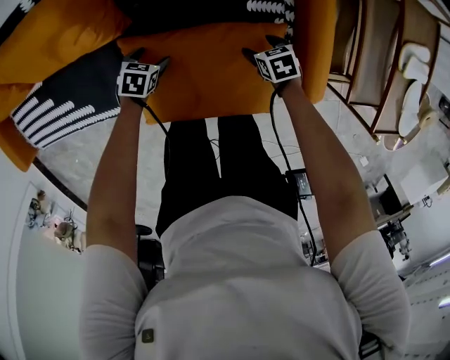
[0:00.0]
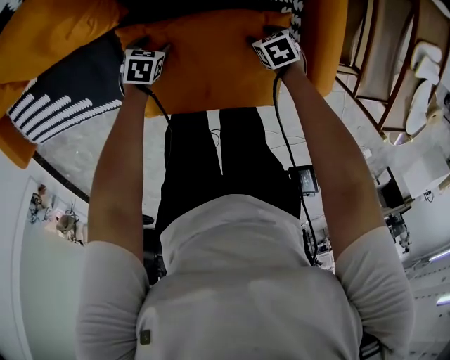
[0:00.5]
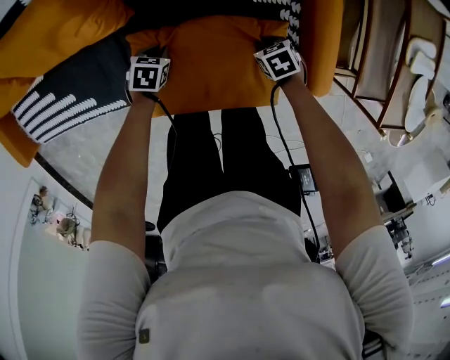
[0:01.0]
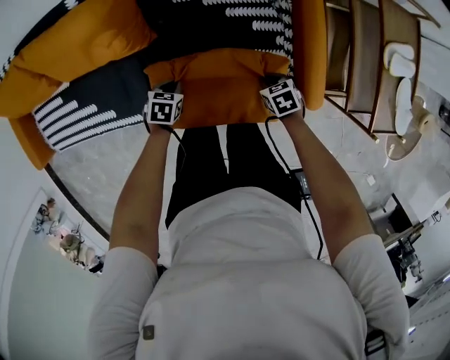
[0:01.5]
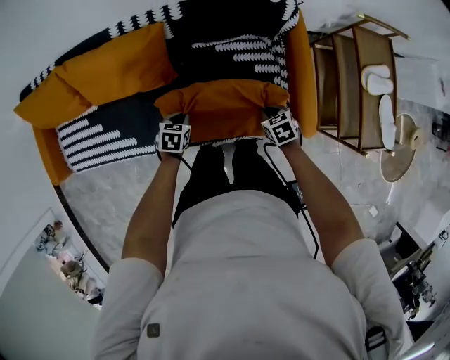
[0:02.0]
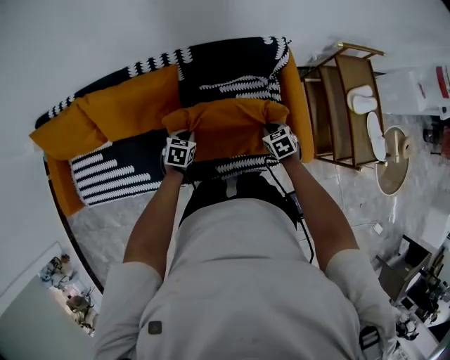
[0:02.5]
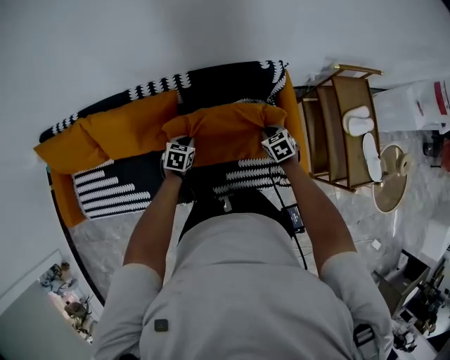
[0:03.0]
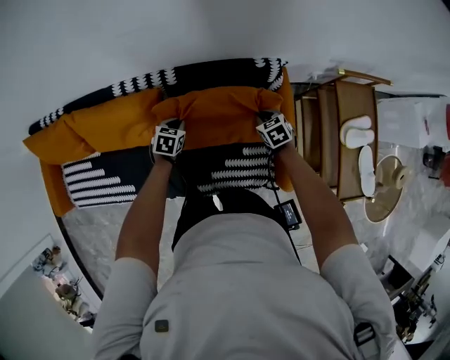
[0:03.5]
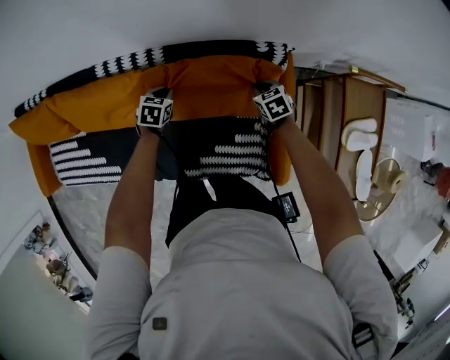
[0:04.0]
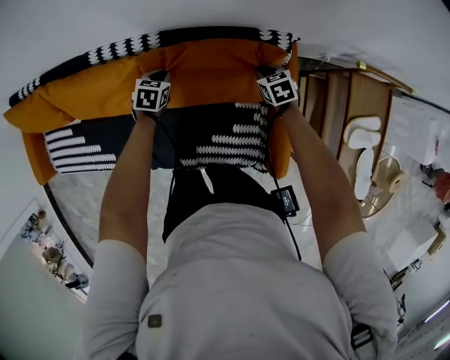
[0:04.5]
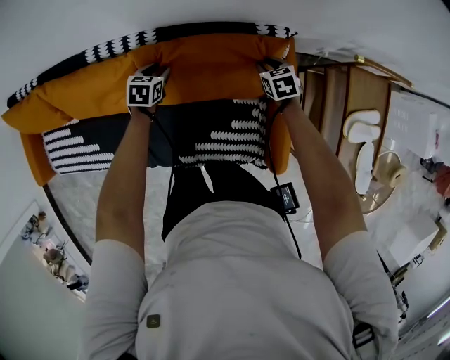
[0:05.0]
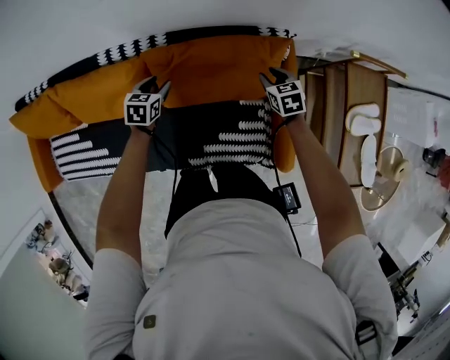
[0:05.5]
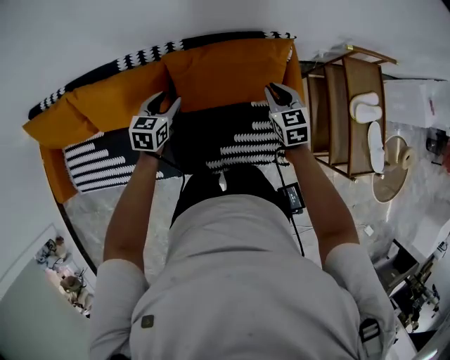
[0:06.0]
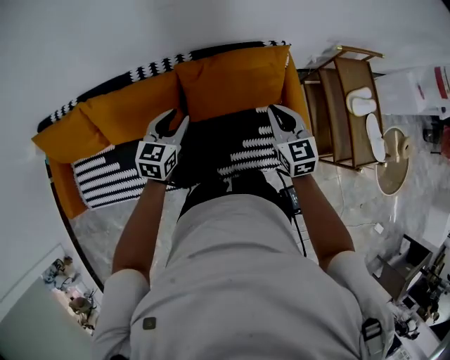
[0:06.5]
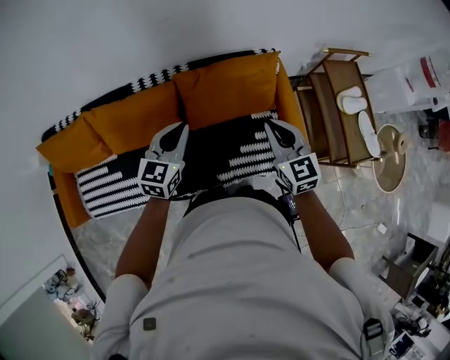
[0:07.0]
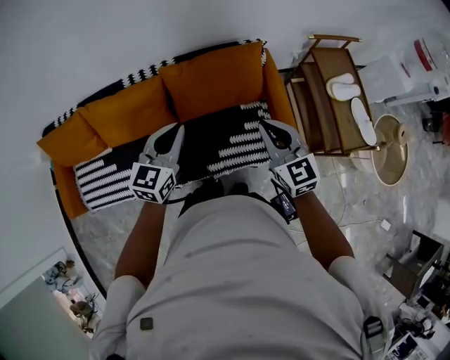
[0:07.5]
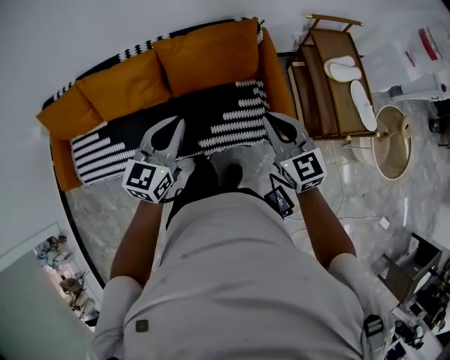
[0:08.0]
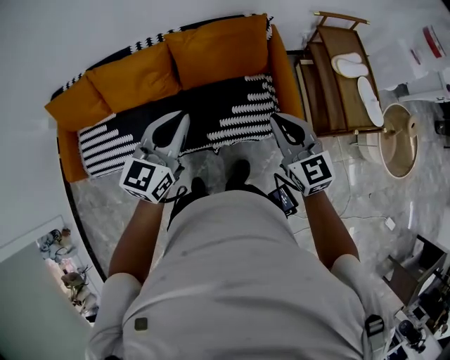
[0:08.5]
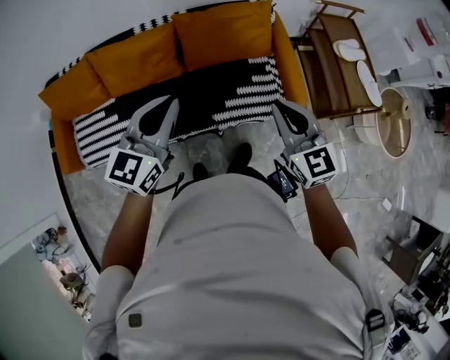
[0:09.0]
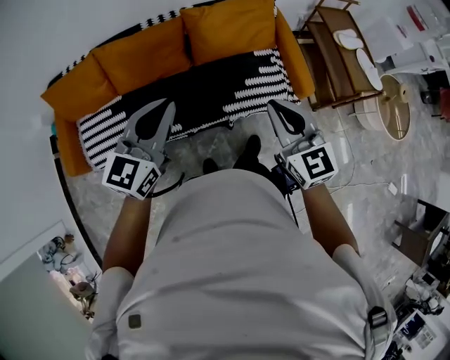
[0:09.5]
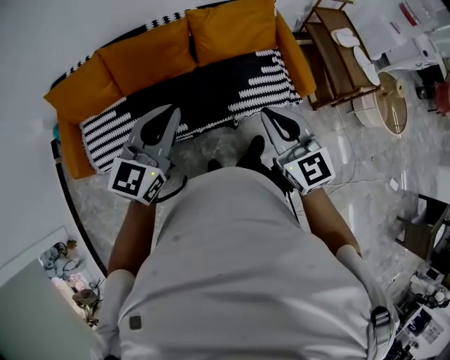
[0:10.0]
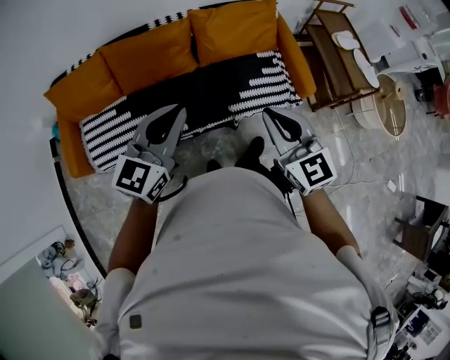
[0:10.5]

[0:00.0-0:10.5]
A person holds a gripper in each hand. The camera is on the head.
0:00.0 to 0:02.0: The grippers both shift upward by roughly 20 cm. The right gripper closes its fingers. Meanwhile the left gripper closes its fingers.
0:02.0 to 0:04.0: Both grippers travel together forward, about 30 cm.
0:04.0 to 0:06.5: The right gripper moves upward, backward and to the left, about 35 cm, tilts its fingers approximately 30 degrees upward, and opens, then closes again. The left gripper is displaced upward and backward by some 30 cm, rotates approximately 30 degrees, and opens its fingers.
0:06.5 to 0:08.5: The left gripper is displaced backward, upward and to the right by roughly 35 cm, and closes its fingers, while the right gripper travels backward and to the right by approximately 30 cm.
0:08.5 to 0:10.5: The two grippers go some 30 cm to the left and backward.

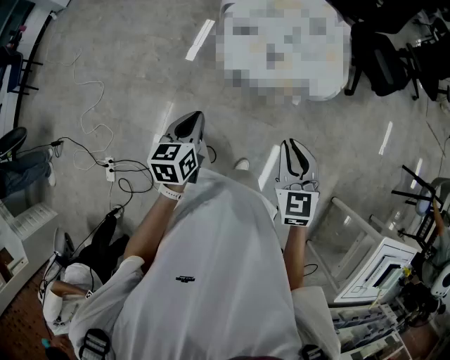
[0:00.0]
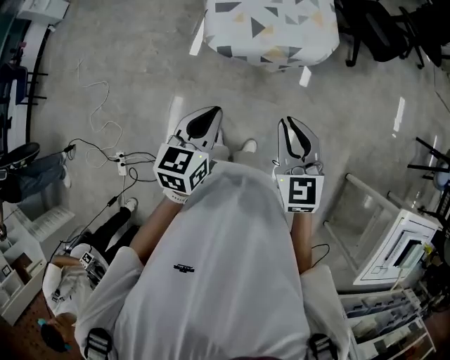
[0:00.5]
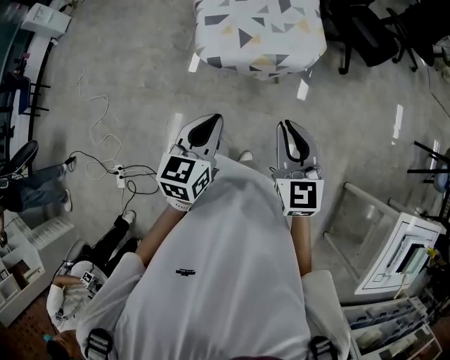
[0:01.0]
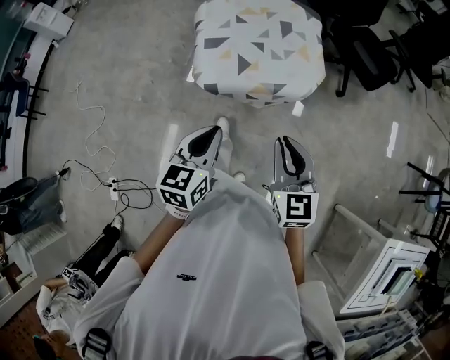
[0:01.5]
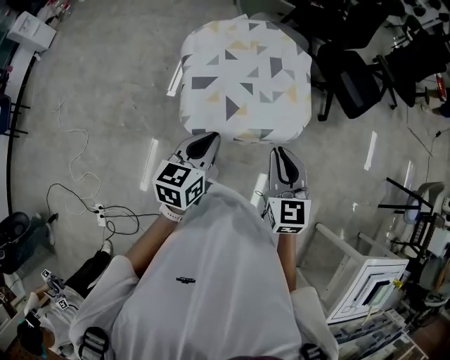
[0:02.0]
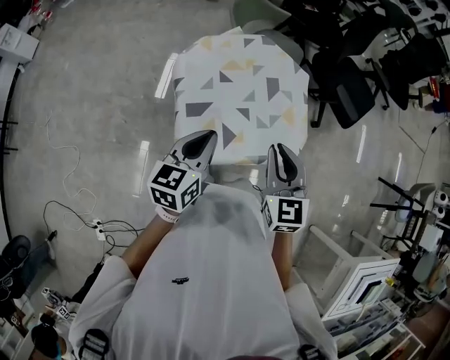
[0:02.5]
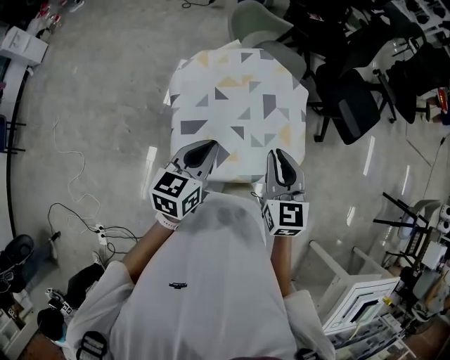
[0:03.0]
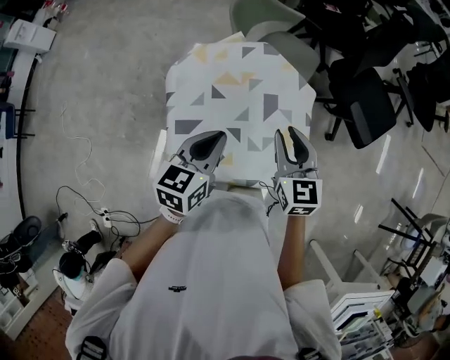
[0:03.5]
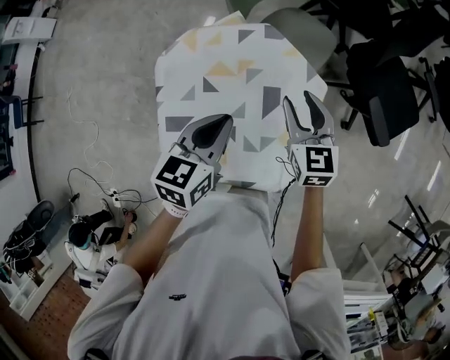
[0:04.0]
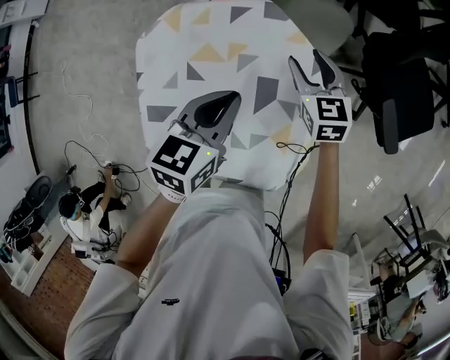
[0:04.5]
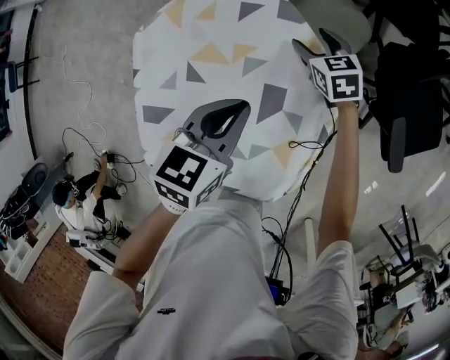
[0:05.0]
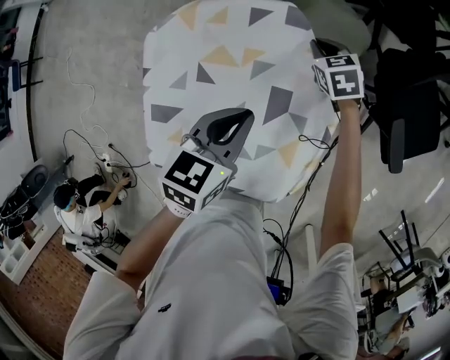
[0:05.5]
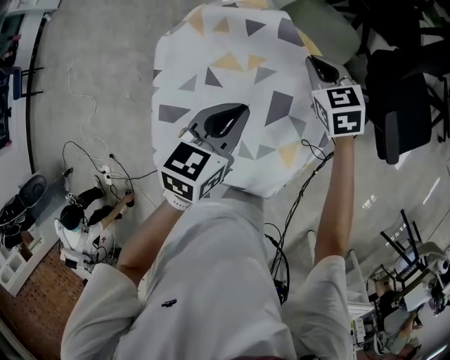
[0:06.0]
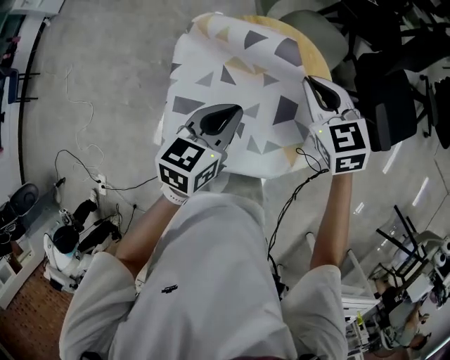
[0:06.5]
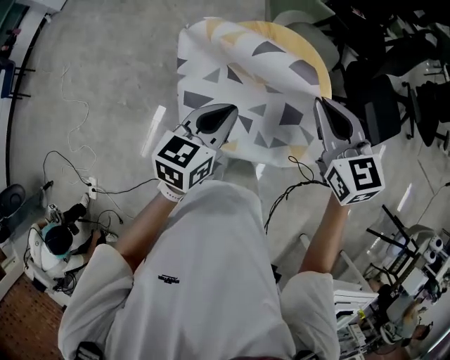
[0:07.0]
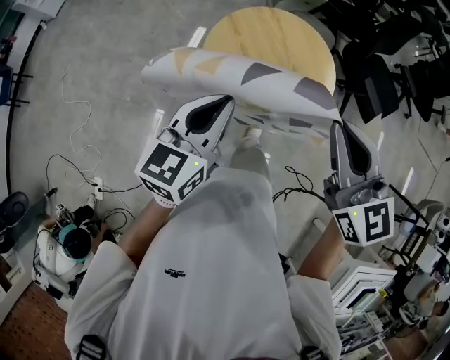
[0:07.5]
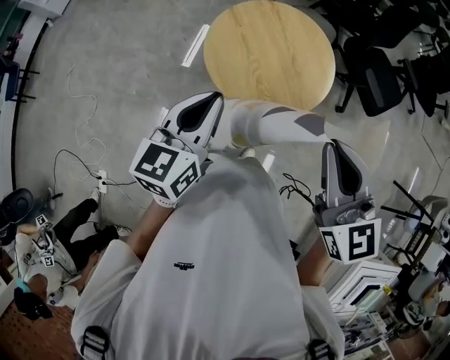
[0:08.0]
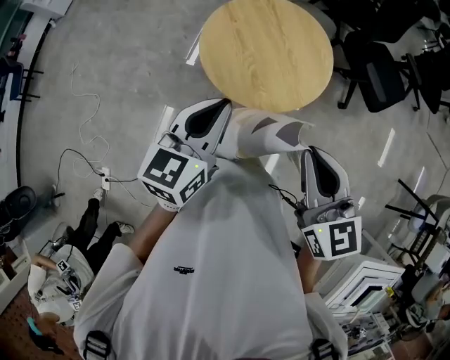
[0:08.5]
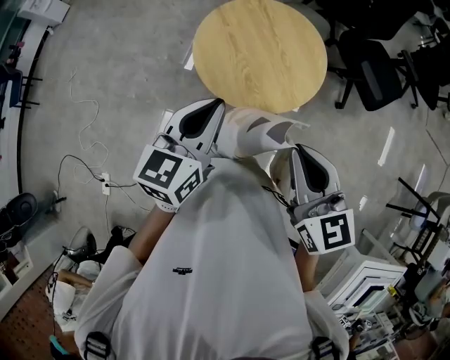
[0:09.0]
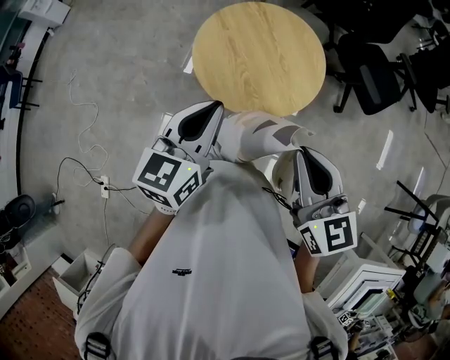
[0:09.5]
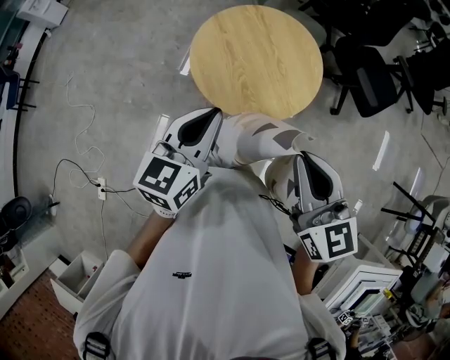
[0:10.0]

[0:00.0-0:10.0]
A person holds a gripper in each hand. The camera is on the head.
0:00.0 to 0:02.0: The left gripper shifts roughly 25 cm forward, to the right and upward. Meanwhile the right gripper goes roughly 20 cm forward and to the right.
0:02.0 to 0:04.0: Both grippers travel together forward, about 40 cm. The right gripper opens its fingers.
0:04.0 to 0:06.0: The left gripper goes some 5 cm downward. Meanwhile the right gripper heads forward and downward, covering roughly 15 cm, swivels some 20 degrees, and closes its fingers.
0:06.0 to 0:08.0: The left gripper heads backward, to the left and upward, covering about 40 cm, and rotates some 20 degrees. Meanwhile the right gripper heads backward and upward, covering about 60 cm, and rotates about 30 degrees.
0:08.0 to 0:10.0: The left gripper travels to the right by approximately 5 cm, while the right gripper shifts by approximately 5 cm.

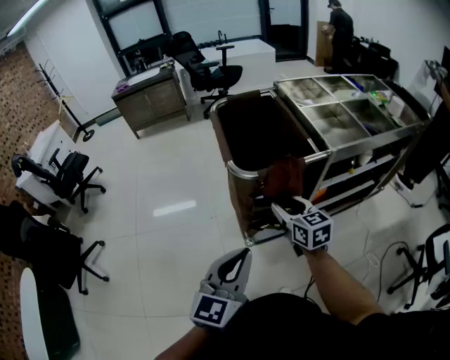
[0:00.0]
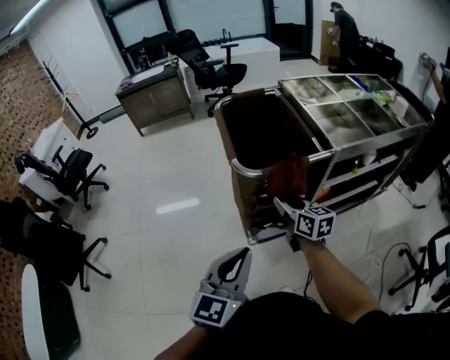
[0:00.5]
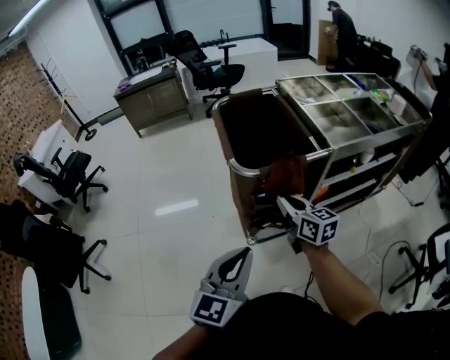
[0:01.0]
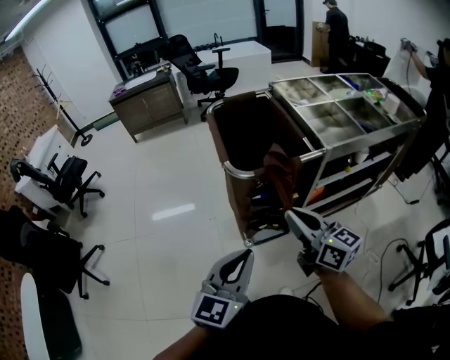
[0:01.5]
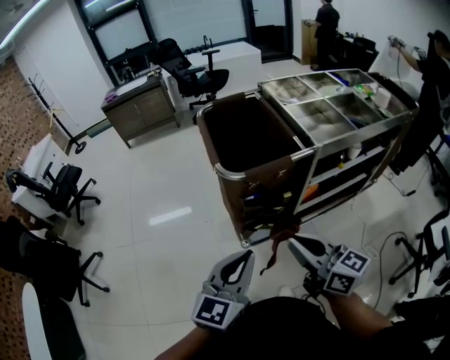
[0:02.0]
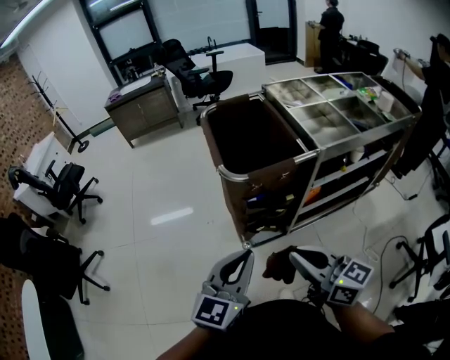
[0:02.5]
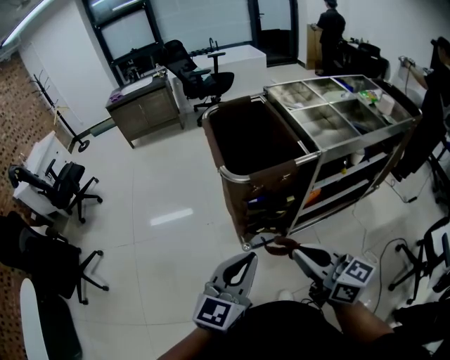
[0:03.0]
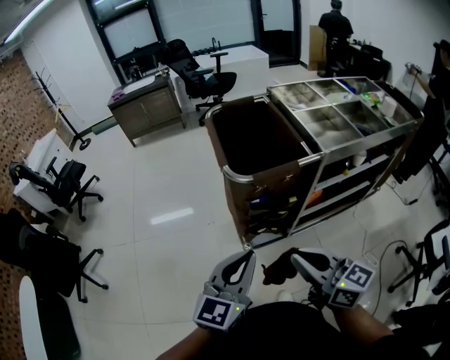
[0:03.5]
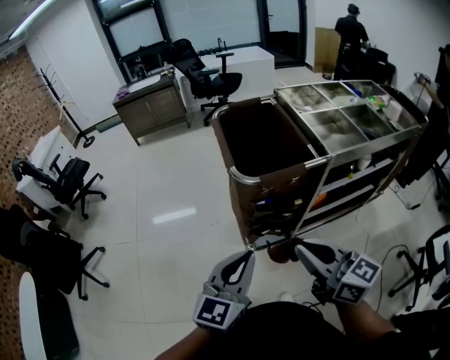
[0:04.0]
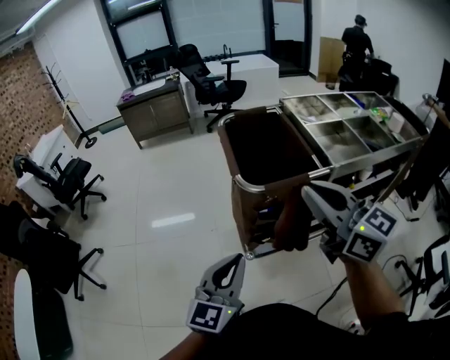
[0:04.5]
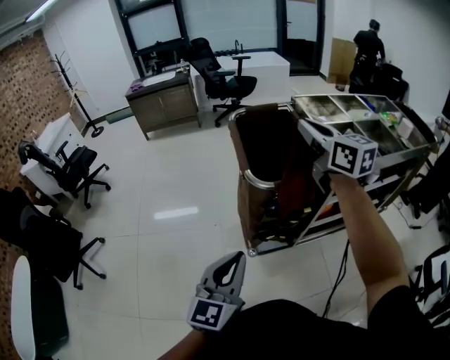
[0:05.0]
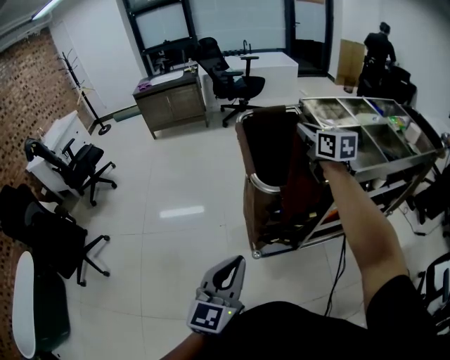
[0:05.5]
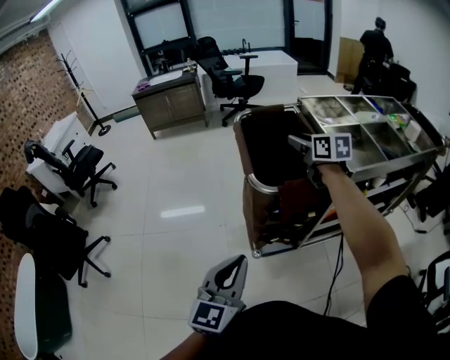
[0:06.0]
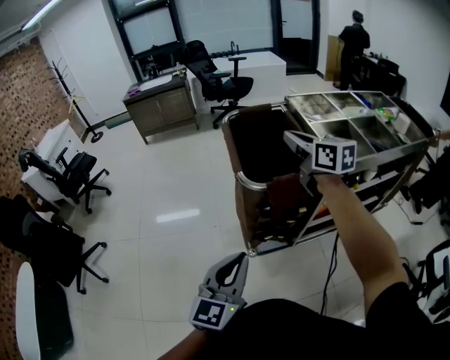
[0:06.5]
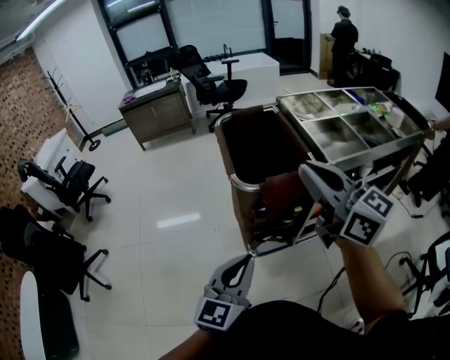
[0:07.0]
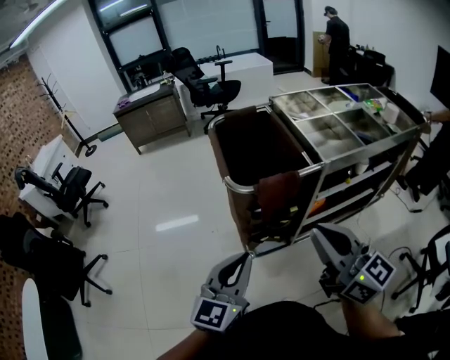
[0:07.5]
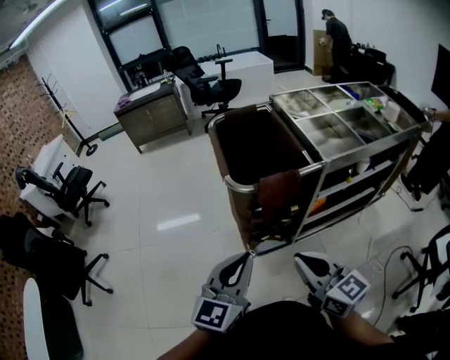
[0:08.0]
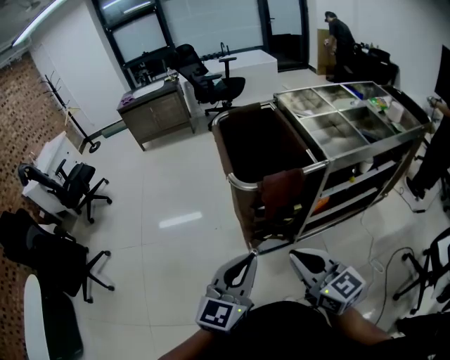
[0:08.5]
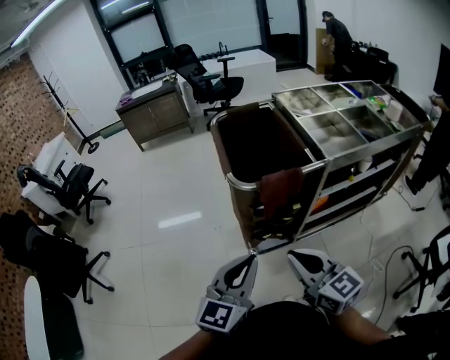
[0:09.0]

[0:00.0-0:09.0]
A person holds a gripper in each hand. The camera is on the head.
0:00.0 to 0:02.0: The right gripper is displaced backward and upward by some 20 cm, rotates approximately 30 degrees, and closes up.
0:02.0 to 0:04.5: The right gripper travels upward and forward by approximately 20 cm, while the left gripper is displaced to the left by roughly 5 cm.
0:04.5 to 0:07.0: The right gripper travels forward and back again, approximately 30 cm each way, and opens, then closes once more.
0:07.0 to 0:09.0: The right gripper moves downward and backward, roughly 20 cm.
